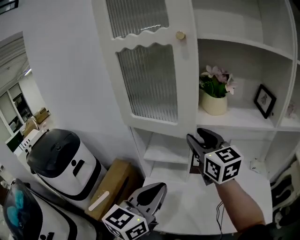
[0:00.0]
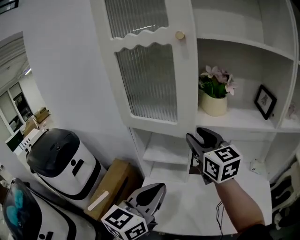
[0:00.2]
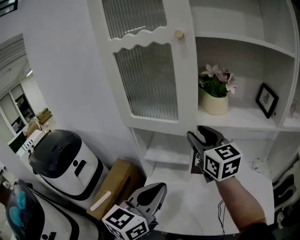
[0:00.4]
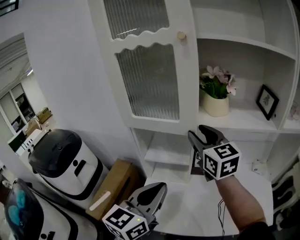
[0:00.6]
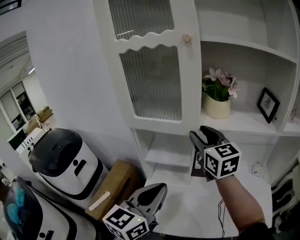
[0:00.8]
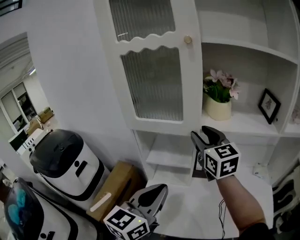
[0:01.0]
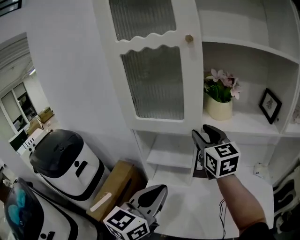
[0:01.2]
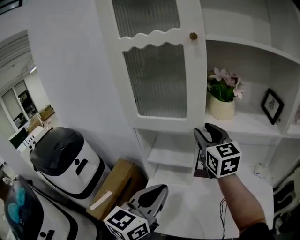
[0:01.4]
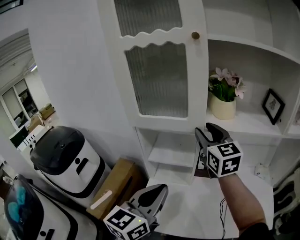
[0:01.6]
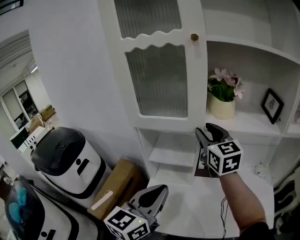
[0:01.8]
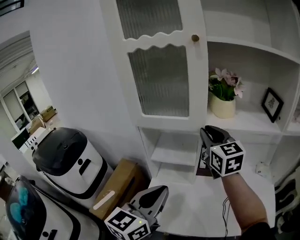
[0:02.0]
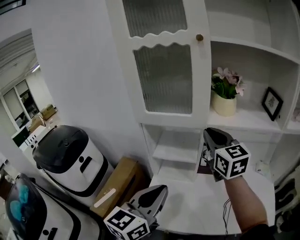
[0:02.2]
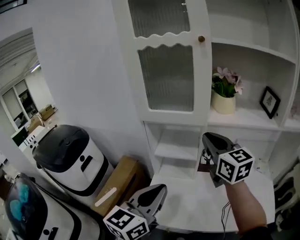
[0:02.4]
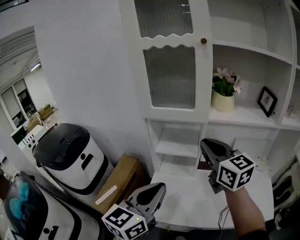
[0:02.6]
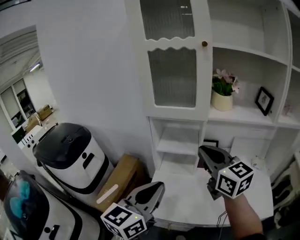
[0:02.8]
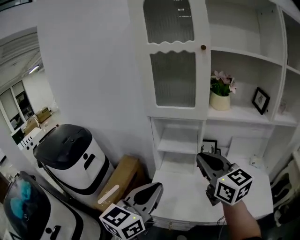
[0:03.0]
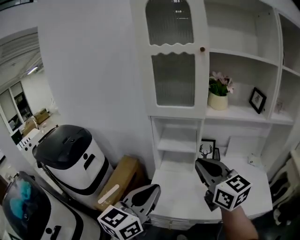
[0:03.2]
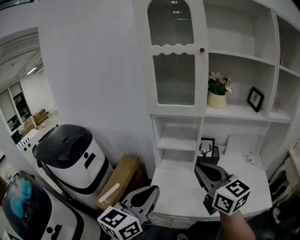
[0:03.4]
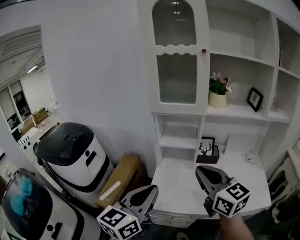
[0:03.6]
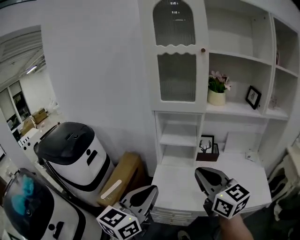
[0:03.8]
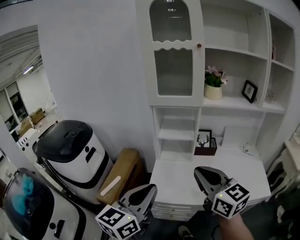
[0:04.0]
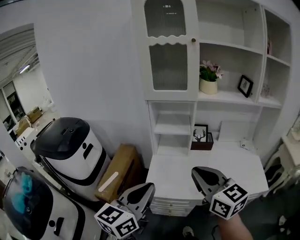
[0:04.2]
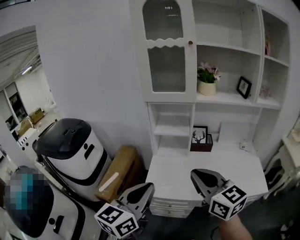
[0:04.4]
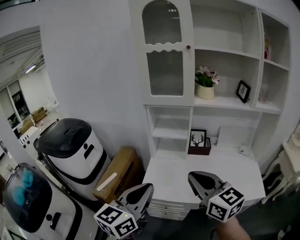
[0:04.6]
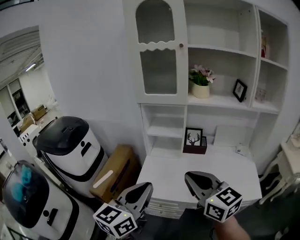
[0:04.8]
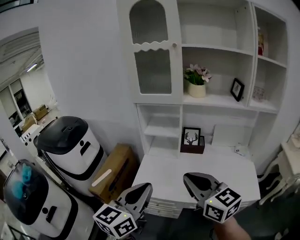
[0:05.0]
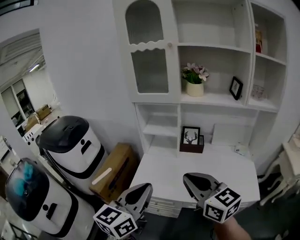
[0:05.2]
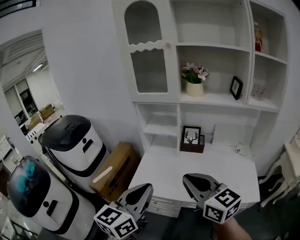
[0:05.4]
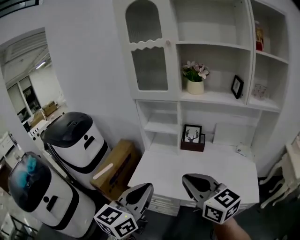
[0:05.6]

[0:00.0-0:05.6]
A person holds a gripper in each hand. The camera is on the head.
0:00.0 to 0:01.4: There are only small adjustments of the grippers.
0:01.4 to 0:02.8: The right gripper is displaced backward by about 20 cm, and closes up, while the left gripper moves backward and to the left, roughly 10 cm.
0:02.8 to 0:04.2: The right gripper is displaced backward by some 20 cm, while the left gripper heads backward and to the left, covering roughly 15 cm.
0:04.2 to 0:05.6: The left gripper is displaced to the right by roughly 15 cm, while the right gripper moves to the right and backward, about 15 cm.

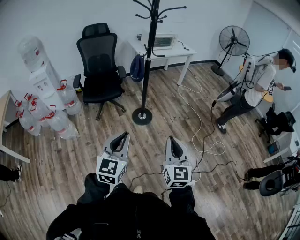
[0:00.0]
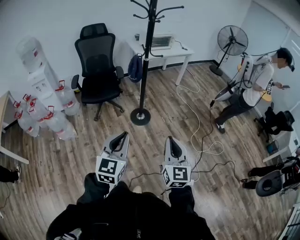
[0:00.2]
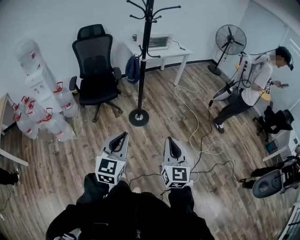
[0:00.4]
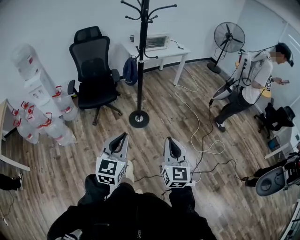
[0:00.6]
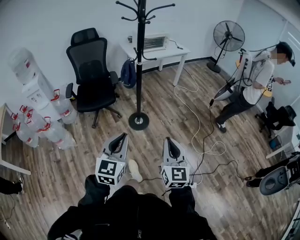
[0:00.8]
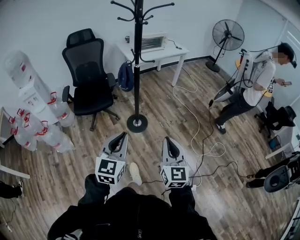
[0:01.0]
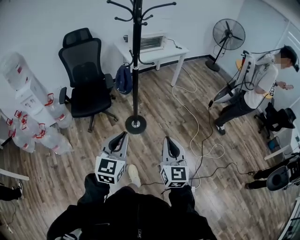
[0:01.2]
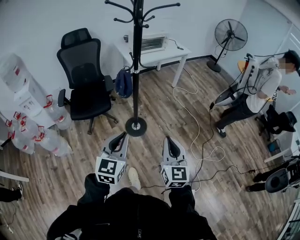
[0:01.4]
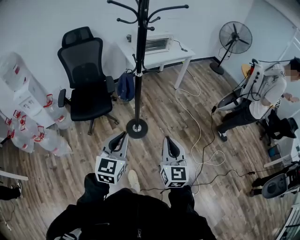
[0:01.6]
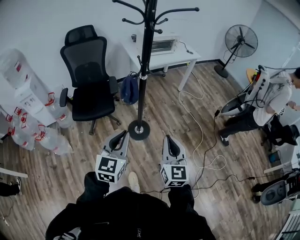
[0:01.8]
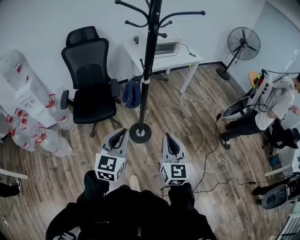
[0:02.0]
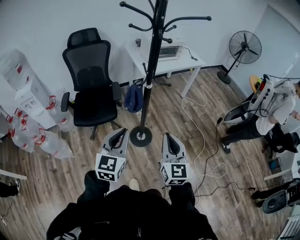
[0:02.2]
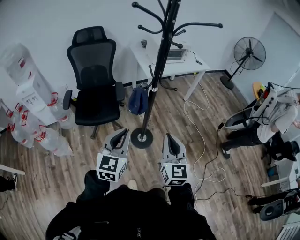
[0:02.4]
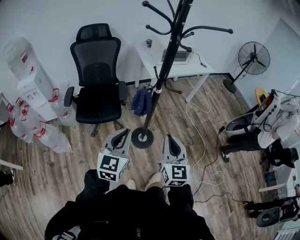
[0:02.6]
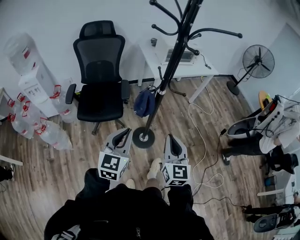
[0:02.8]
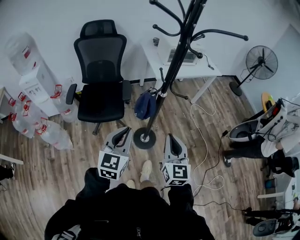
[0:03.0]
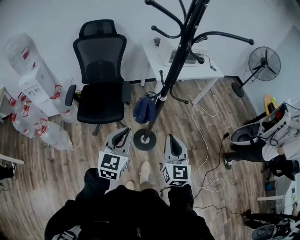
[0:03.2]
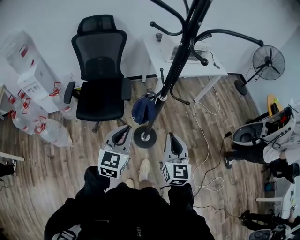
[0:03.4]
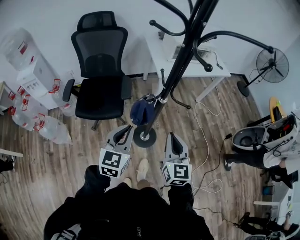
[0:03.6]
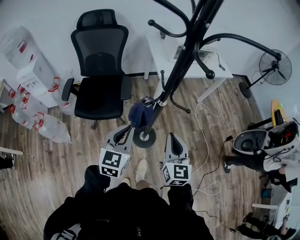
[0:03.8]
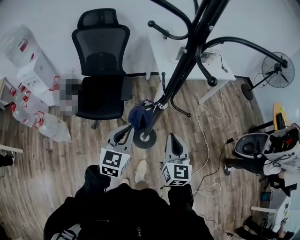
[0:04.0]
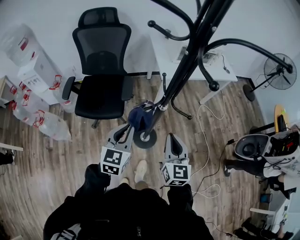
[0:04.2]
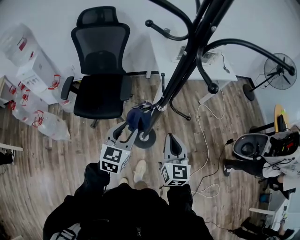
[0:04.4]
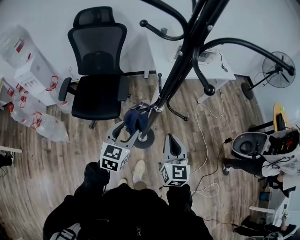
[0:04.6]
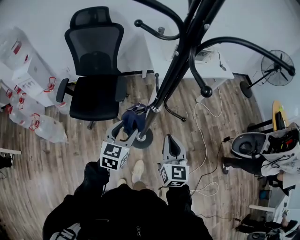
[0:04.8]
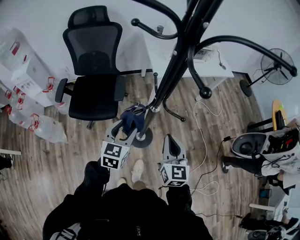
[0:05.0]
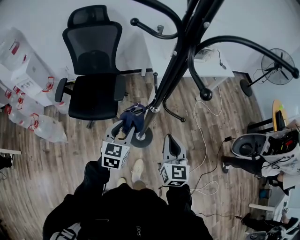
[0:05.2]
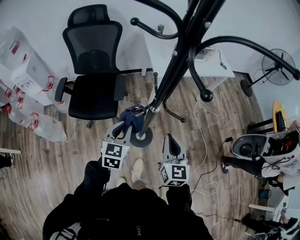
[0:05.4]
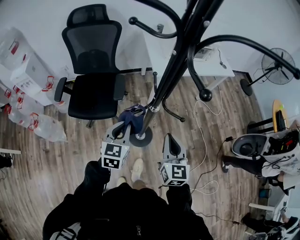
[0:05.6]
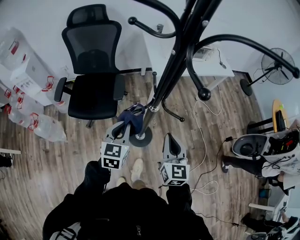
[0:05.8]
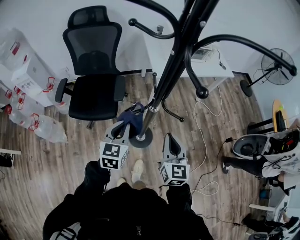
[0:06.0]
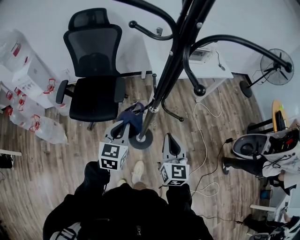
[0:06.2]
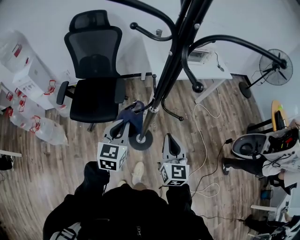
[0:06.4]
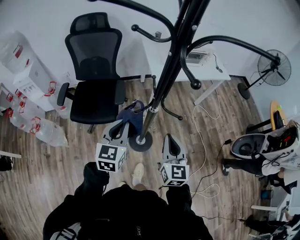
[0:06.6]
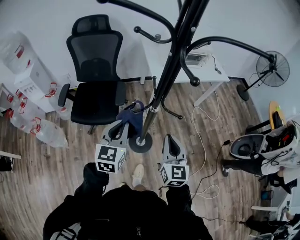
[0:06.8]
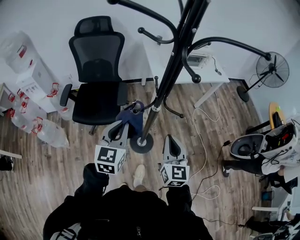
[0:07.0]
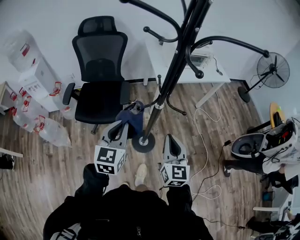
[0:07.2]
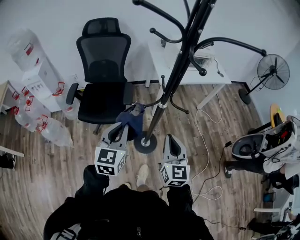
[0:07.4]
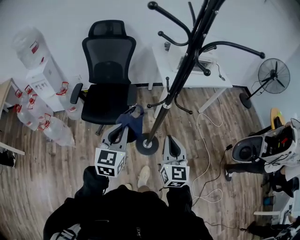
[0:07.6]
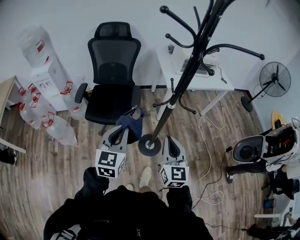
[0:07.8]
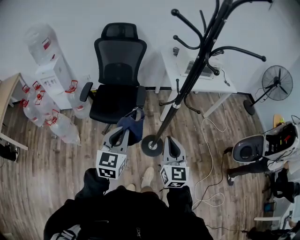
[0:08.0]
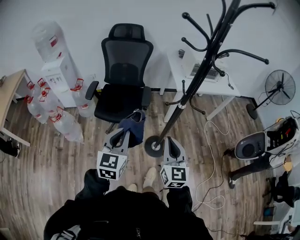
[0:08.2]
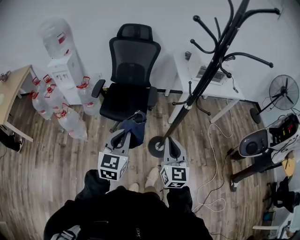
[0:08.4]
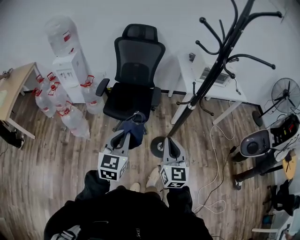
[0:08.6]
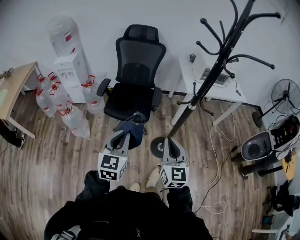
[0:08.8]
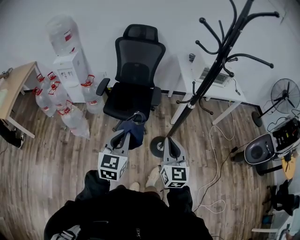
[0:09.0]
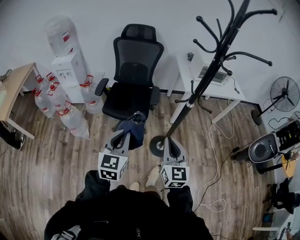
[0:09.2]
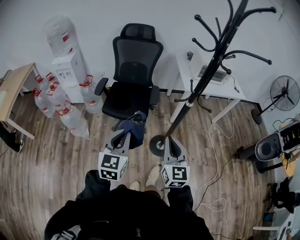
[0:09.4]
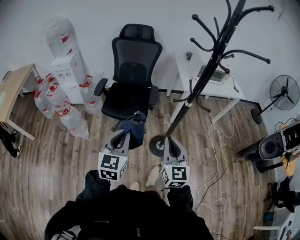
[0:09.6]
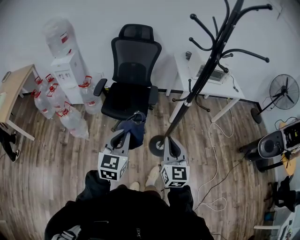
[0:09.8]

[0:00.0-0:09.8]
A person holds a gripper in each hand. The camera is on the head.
0:00.0 to 0:01.4: Both grippers travel together forward, approximately 30 cm.
0:01.4 to 0:02.8: The grippers both shift forward and to the left by approximately 25 cm.
0:02.8 to 0:04.2: The grippers both shift forward by approximately 20 cm.
0:04.2 to 0:05.6: The left gripper heads forward and downward, covering approximately 10 cm, and opens, then closes once more. Meanwhile the right gripper changes place by approximately 5 cm.
0:05.6 to 0:07.0: The left gripper travels upward and backward by approximately 15 cm. The right gripper shifts roughly 5 cm backward.
0:07.0 to 0:08.4: The left gripper travels backward and to the left by some 25 cm. The right gripper goes approximately 20 cm to the left and backward.
0:08.4 to 0:09.8: The grippers move only a little.

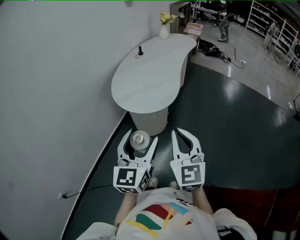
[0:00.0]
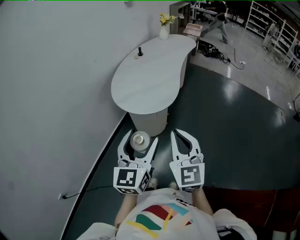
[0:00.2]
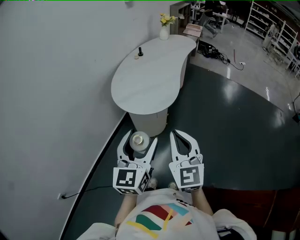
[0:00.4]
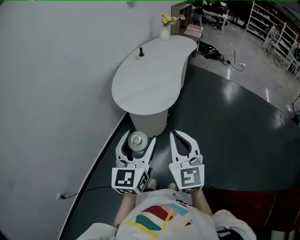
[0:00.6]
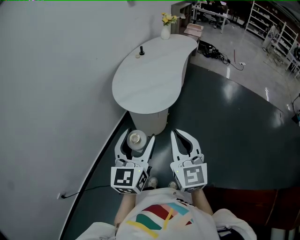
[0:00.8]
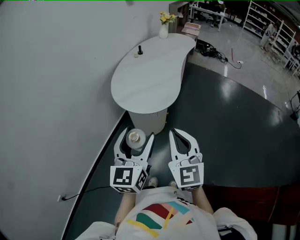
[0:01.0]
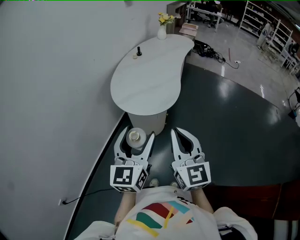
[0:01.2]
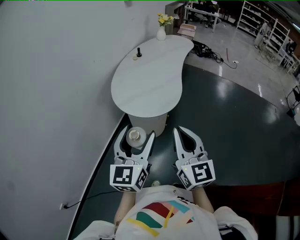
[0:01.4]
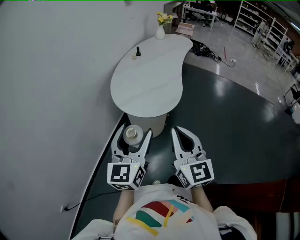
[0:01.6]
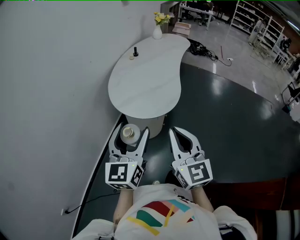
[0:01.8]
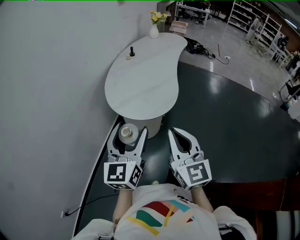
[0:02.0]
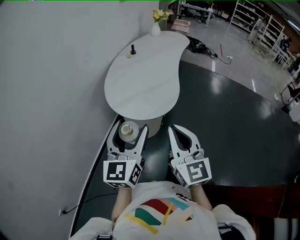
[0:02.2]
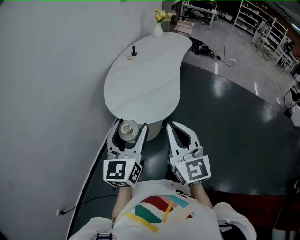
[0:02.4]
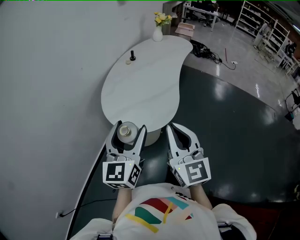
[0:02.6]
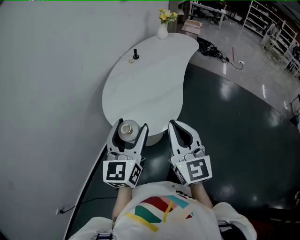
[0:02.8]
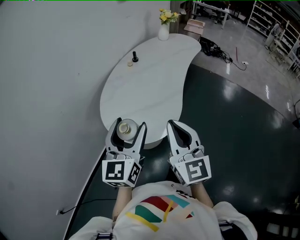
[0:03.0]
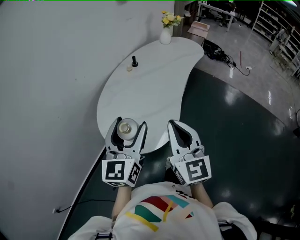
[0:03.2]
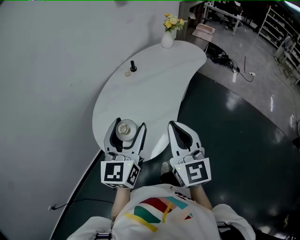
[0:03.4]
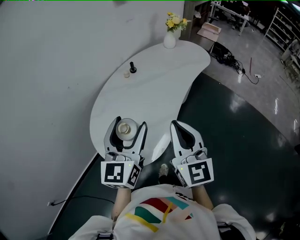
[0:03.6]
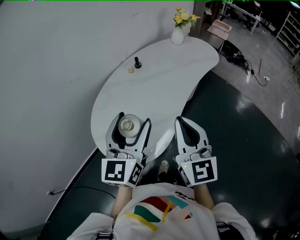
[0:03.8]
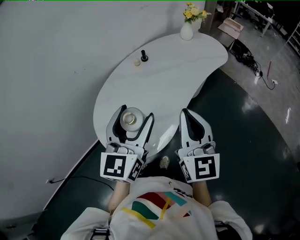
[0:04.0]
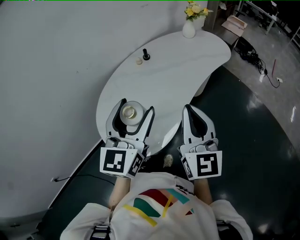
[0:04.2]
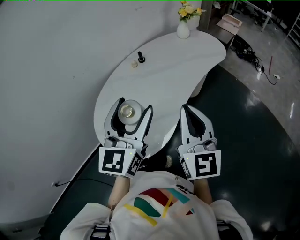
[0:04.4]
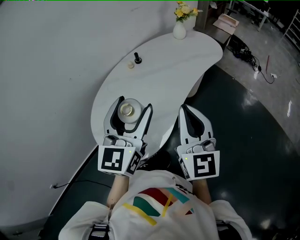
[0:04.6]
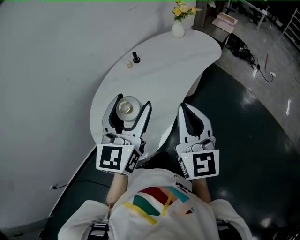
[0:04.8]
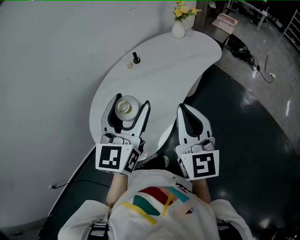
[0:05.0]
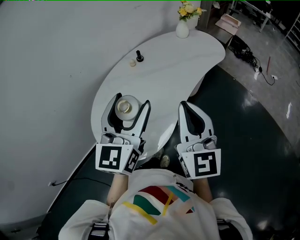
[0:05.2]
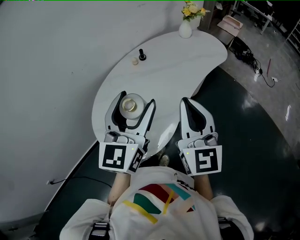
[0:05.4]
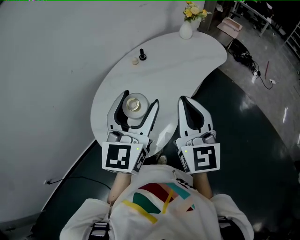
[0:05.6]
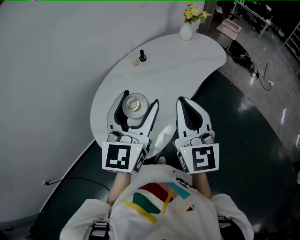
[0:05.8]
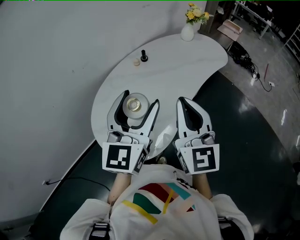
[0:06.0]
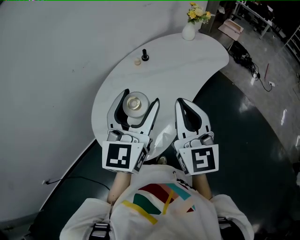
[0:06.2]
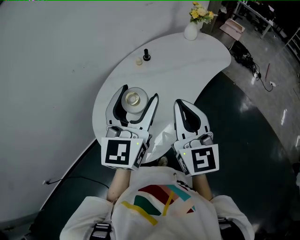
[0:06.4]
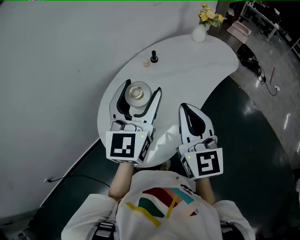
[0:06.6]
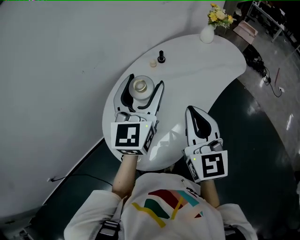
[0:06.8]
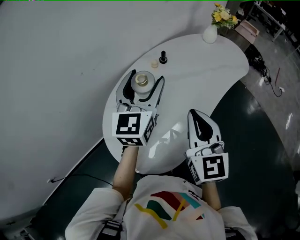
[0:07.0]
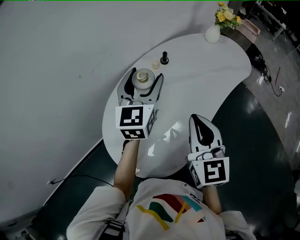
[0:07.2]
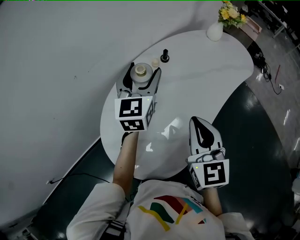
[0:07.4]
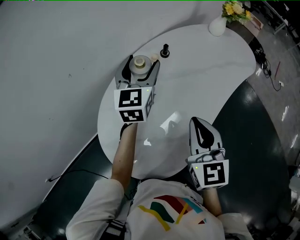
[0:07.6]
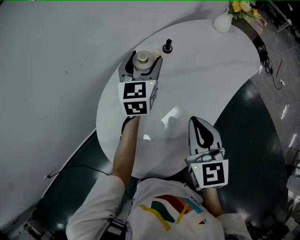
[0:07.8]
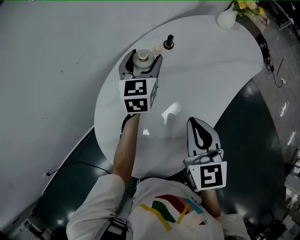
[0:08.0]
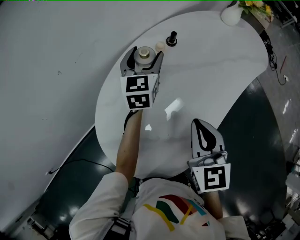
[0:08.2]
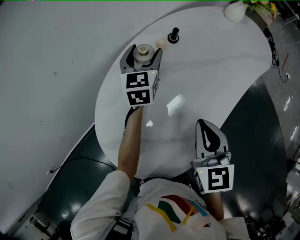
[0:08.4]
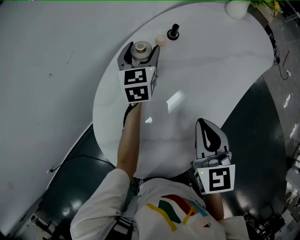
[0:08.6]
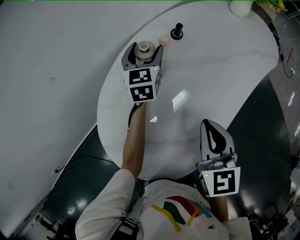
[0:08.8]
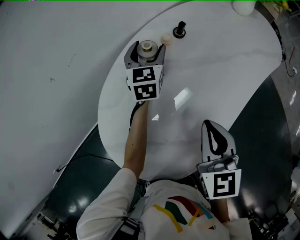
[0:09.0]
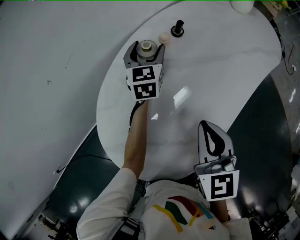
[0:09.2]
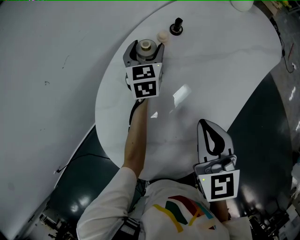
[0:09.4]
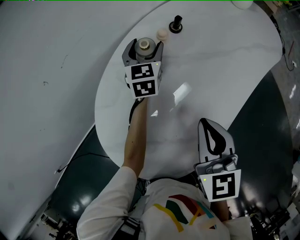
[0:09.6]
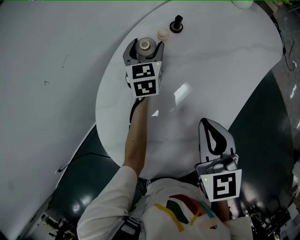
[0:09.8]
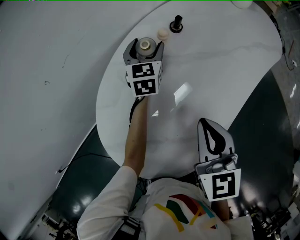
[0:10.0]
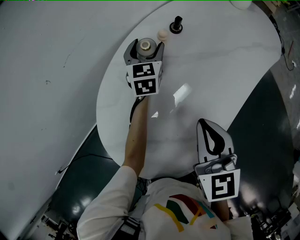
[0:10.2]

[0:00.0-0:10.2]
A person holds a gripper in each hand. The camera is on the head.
0:00.0 to 0:01.4: Both grippers move to the left, approximately 5 cm.
0:01.4 to 0:03.0: The two grippers go approximately 20 cm forward.
0:03.0 to 0:04.4: Both grippers travel together forward and to the right, approximately 25 cm.
0:04.4 to 0:05.8: The right gripper heads to the left, covering some 5 cm.
0:05.8 to 0:07.2: The left gripper moves forward and to the left, some 25 cm. Meanwhile the right gripper shifts approximately 15 cm forward, downward and to the left.
0:07.2 to 0:08.8: The right gripper goes about 15 cm downward and forward, while the left gripper shifts about 25 cm downward and forward.
0:08.8 to 0:10.2: The grippers stay close to where they were, moving slightly.
